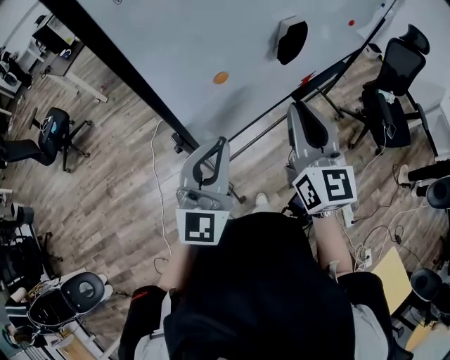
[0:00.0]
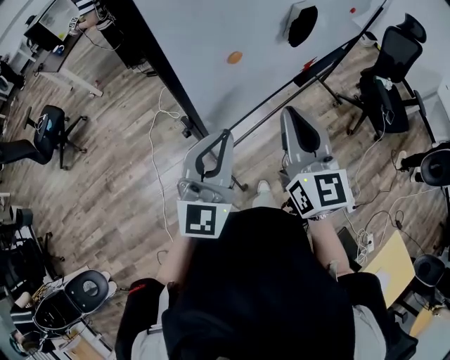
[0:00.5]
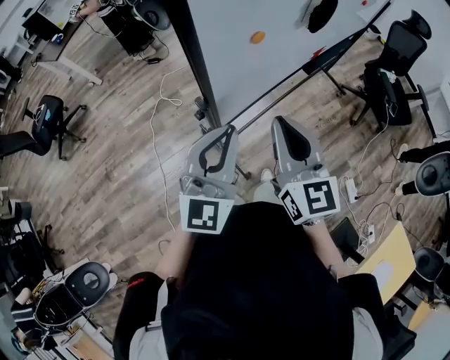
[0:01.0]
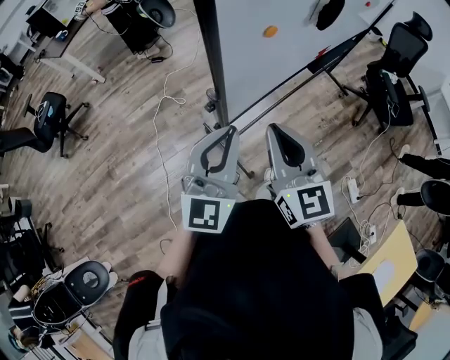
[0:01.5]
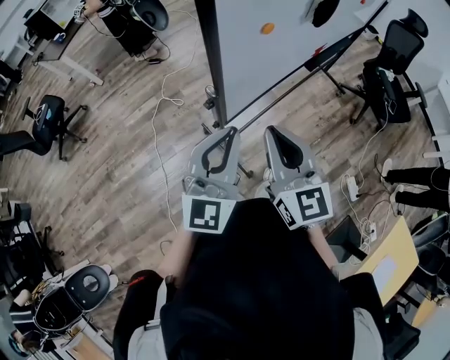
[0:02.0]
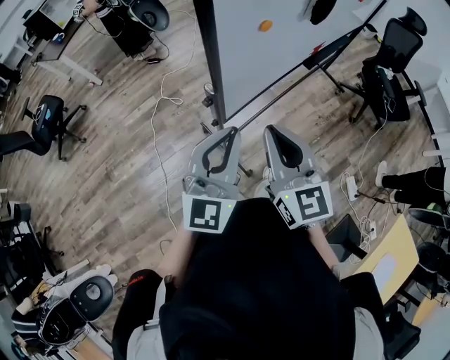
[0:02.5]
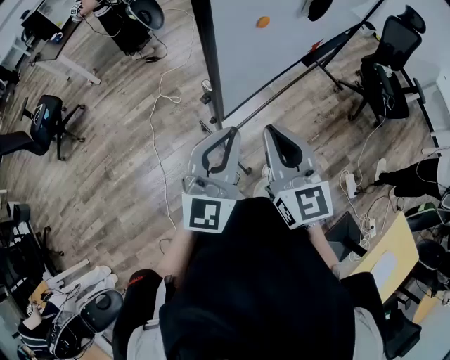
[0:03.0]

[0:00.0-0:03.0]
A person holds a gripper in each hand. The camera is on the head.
0:00.0 to 0:01.5: The left gripper moves to the left and backward, approximately 10 cm, while the right gripper goes roughly 20 cm to the left, backward and downward.
0:01.5 to 0:03.0: The grippers make only small movements.

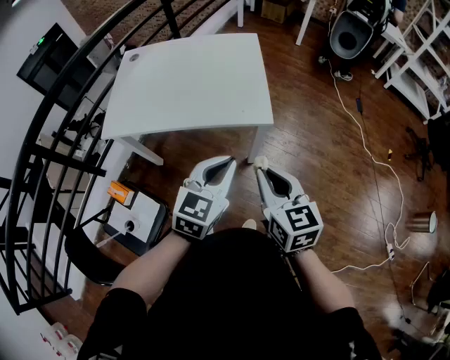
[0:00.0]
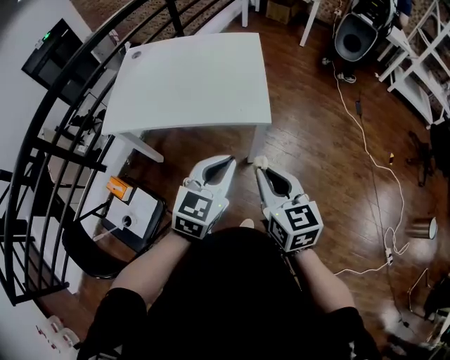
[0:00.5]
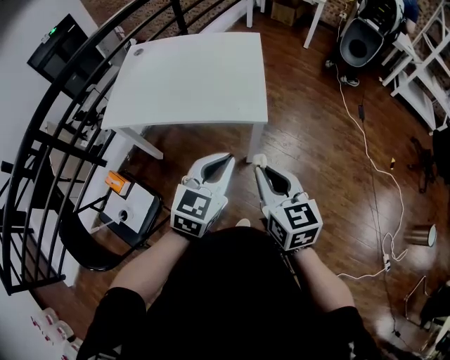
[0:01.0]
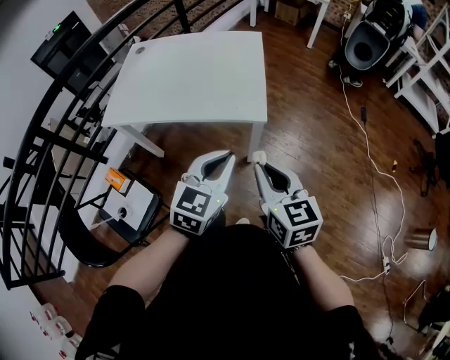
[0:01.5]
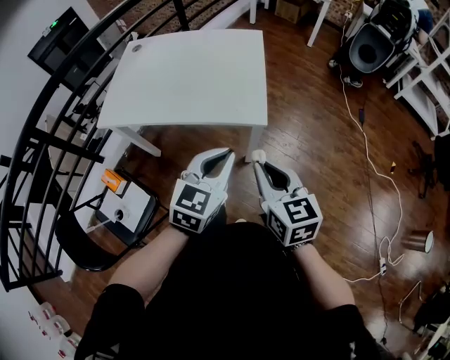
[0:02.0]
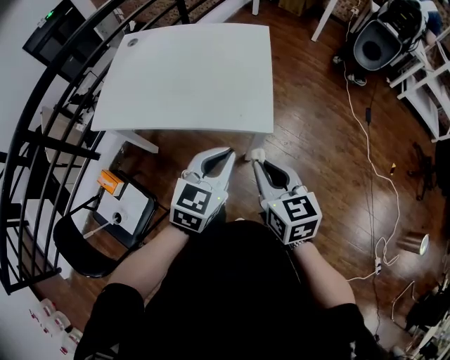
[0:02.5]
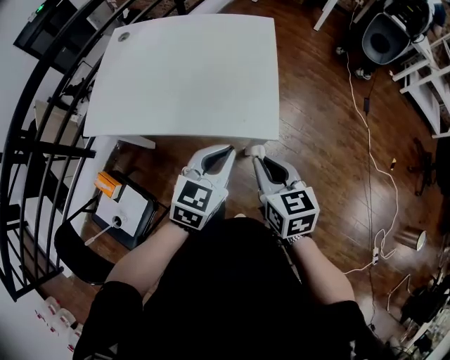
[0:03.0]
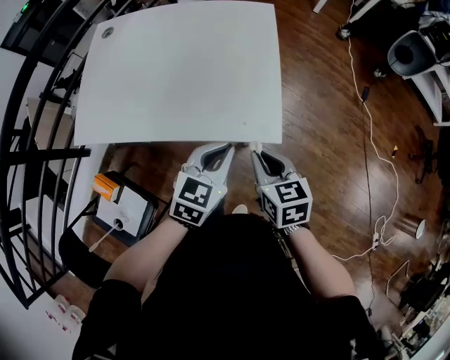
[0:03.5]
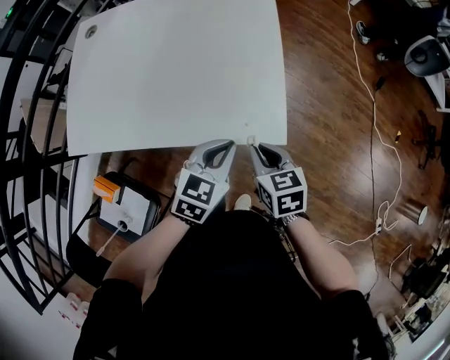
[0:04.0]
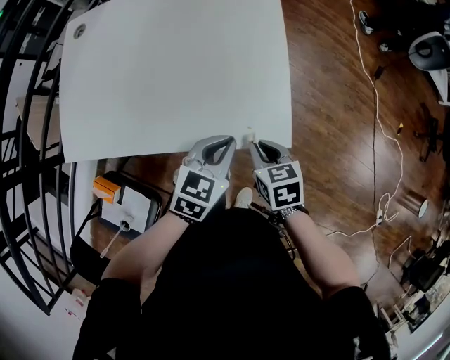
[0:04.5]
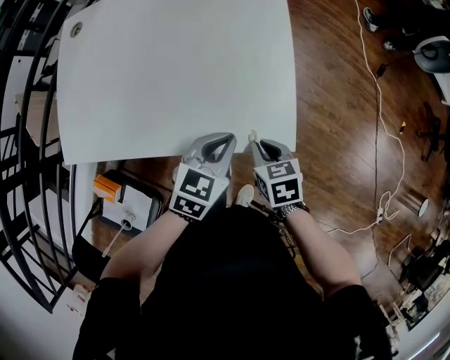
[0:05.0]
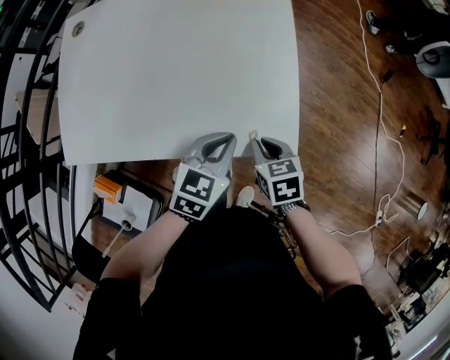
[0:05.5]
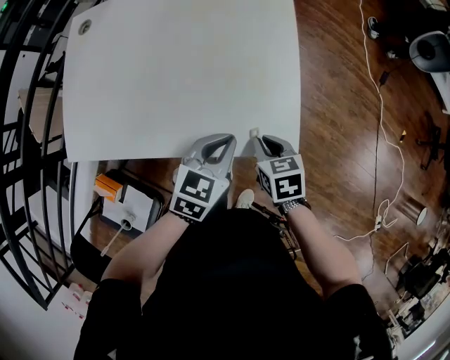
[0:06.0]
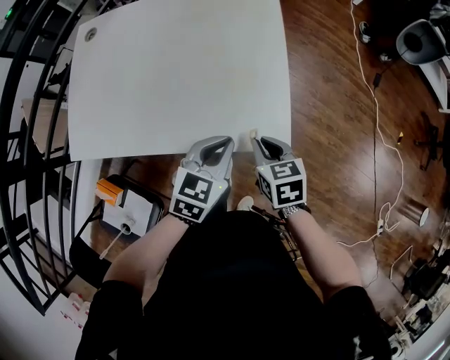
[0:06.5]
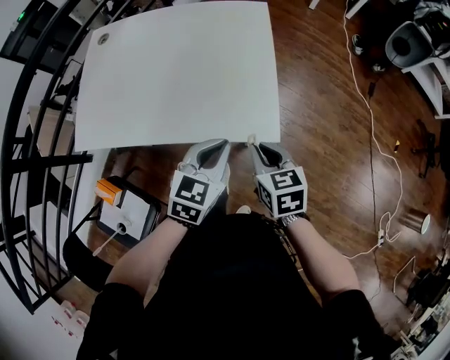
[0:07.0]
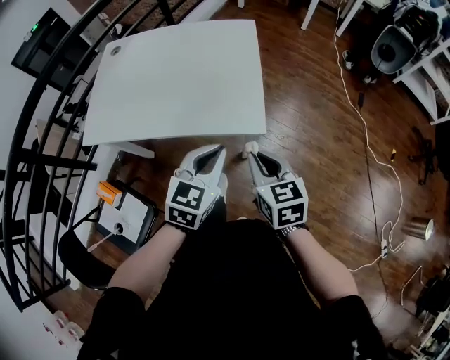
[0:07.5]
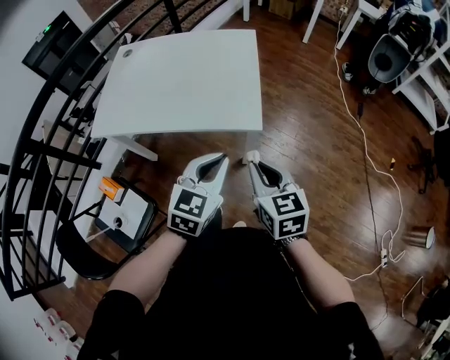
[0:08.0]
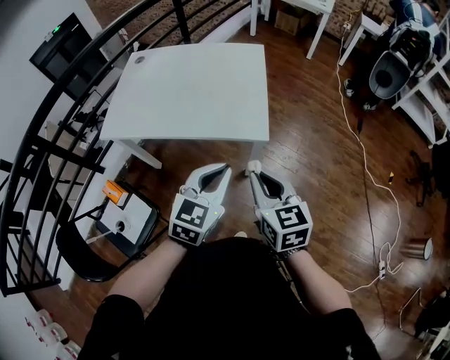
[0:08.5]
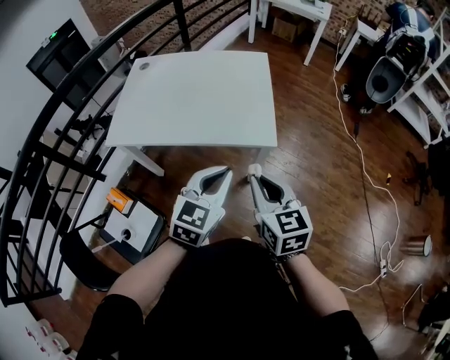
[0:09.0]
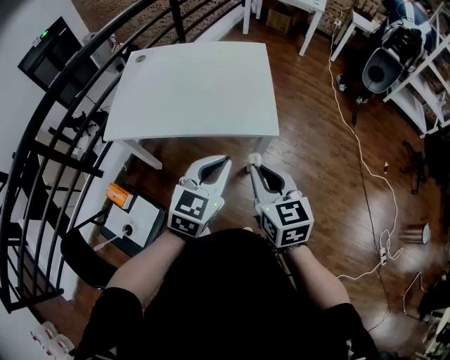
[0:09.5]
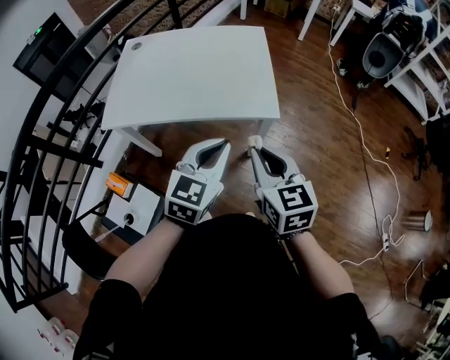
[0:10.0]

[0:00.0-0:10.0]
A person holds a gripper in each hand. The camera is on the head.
0:00.0 to 0:02.0: The left gripper moves about 5 cm. Meanwhile the right gripper shifts by some 5 cm.
0:02.0 to 0:04.0: The grippers both shift forward and downward by roughly 25 cm. The left gripper changes its angle by some 20 degrees. The right gripper swivels some 30 degrees.
0:04.0 to 0:06.0: The right gripper travels downward and forward by roughly 10 cm. The left gripper changes place by some 5 cm.
0:06.0 to 0:08.0: The two grippers go roughly 30 cm backward and upward. The right gripper rotates some 30 degrees; the left gripper swivels roughly 20 degrees.
0:08.0 to 0:10.0: The right gripper shifts about 10 cm to the left and upward, while the left gripper goes some 10 cm to the left.

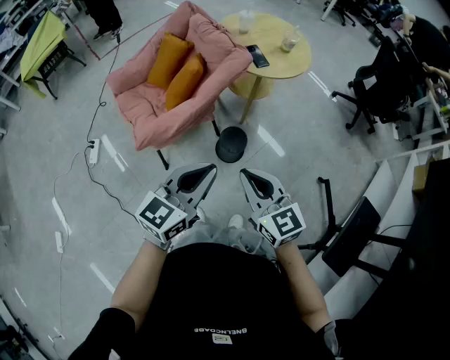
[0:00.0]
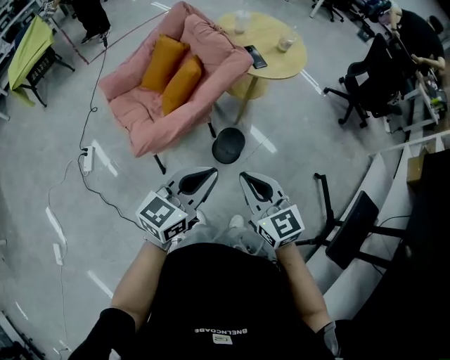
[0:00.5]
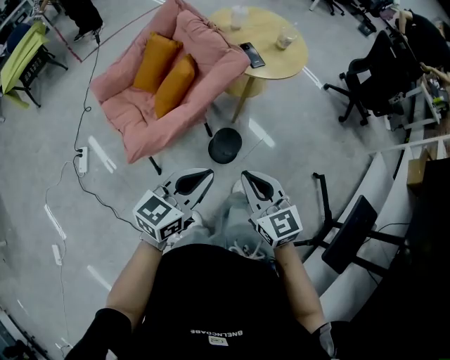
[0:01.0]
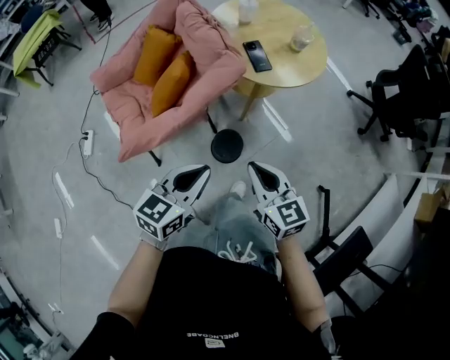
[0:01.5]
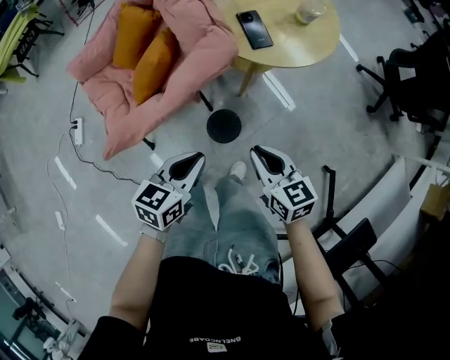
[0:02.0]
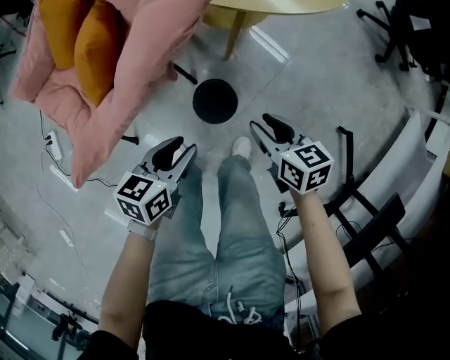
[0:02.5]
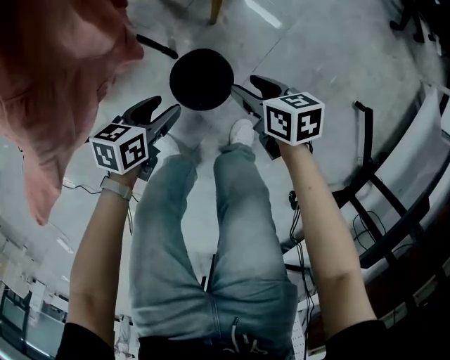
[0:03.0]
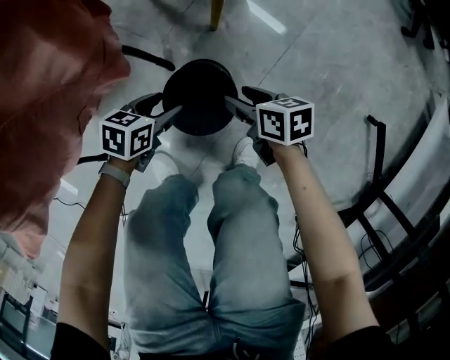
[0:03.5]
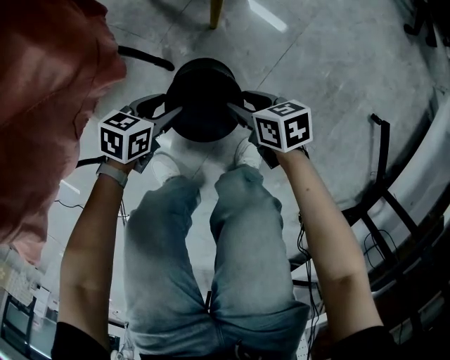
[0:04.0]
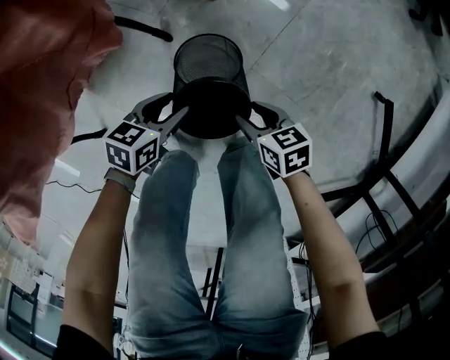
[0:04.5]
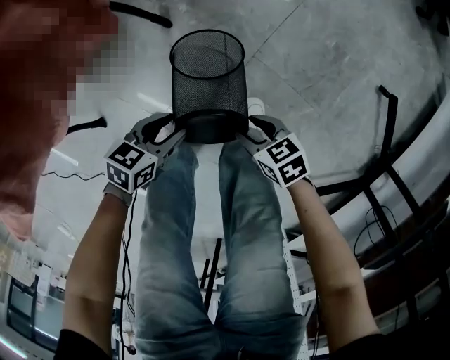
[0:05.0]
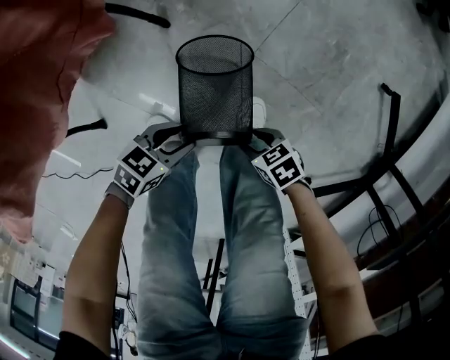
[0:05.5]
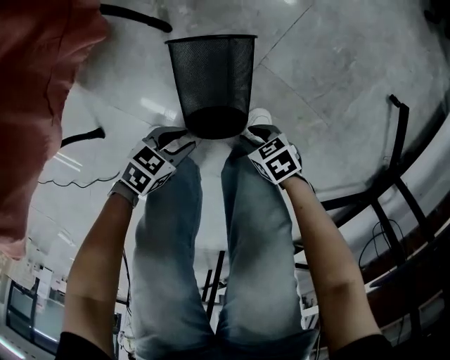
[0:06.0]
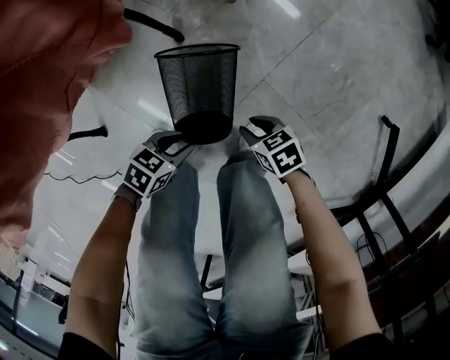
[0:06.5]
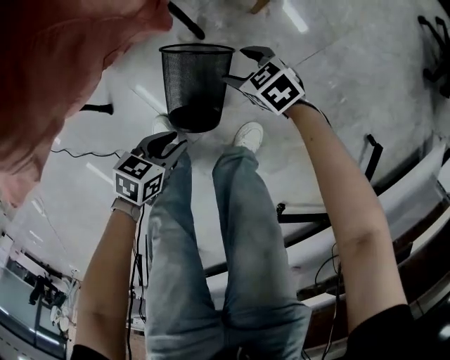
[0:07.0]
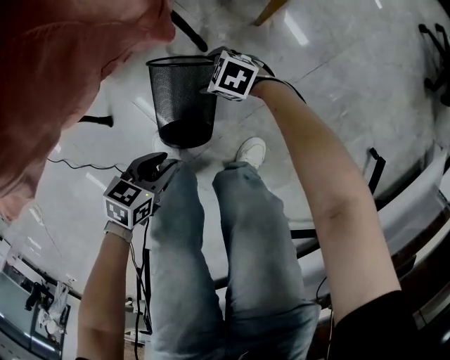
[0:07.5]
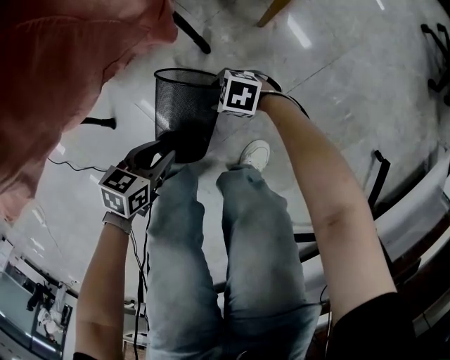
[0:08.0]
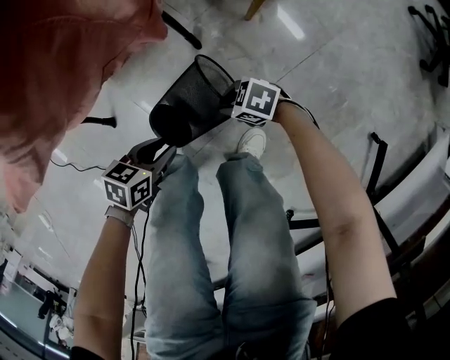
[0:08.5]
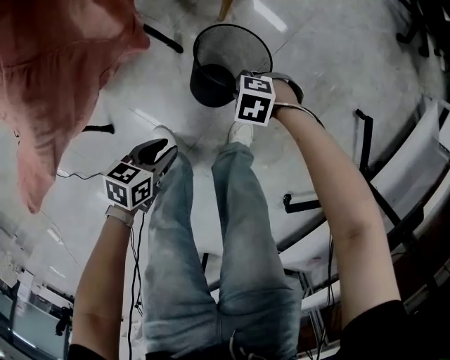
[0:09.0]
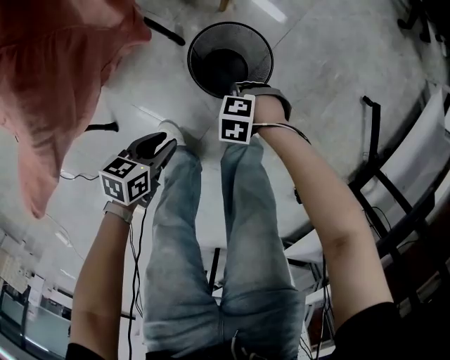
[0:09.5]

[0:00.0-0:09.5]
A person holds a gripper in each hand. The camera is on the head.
0:00.0 to 0:02.0: The two grippers go about 30 cm forward and downward. The left gripper changes its angle by approximately 30 degrees, while the right gripper changes its angle by roughly 20 degrees.
0:02.0 to 0:04.0: Both grippers travel together downward, approximately 50 cm. The left gripper swivels about 30 degrees, and opens up, while the right gripper turns by approximately 30 degrees, and opens its fingers.
0:04.0 to 0:05.5: The right gripper shifts by about 25 cm, and changes its angle by roughly 20 degrees; the left gripper changes place by approximately 20 cm.
0:05.5 to 0:07.5: The right gripper moves up and down over roughly 10 cm, changing direction 2 times, rolls counterclockwise, seen from behind, by about 50 degrees, and opens its fingers, while the left gripper goes downward and returns, approximately 5 cm each way, and rotates some 30 degrees.
0:07.5 to 0:09.5: The right gripper shifts by about 20 cm, swivels some 30 degrees, and closes; the left gripper is displaced upward by approximately 5 cm.

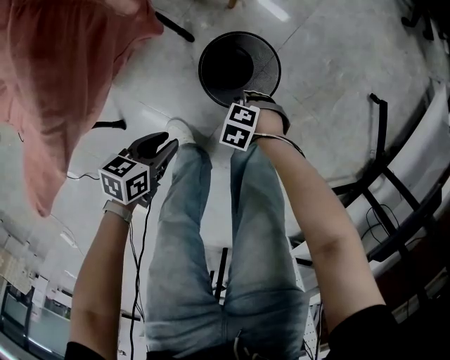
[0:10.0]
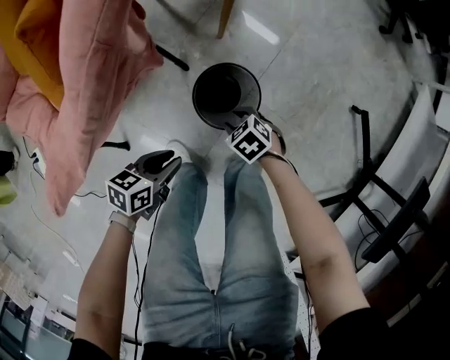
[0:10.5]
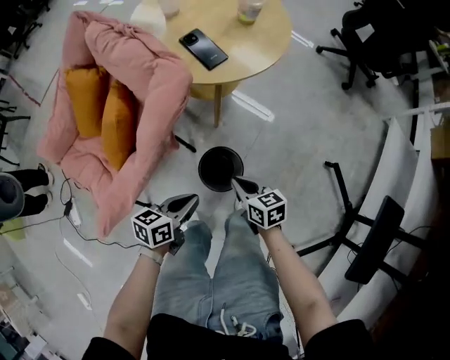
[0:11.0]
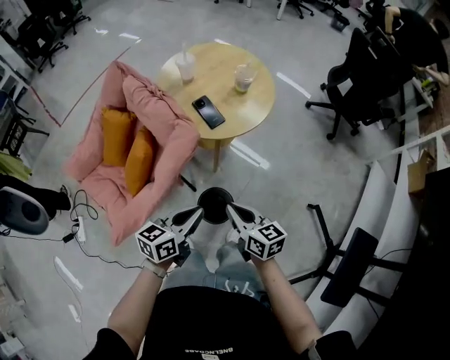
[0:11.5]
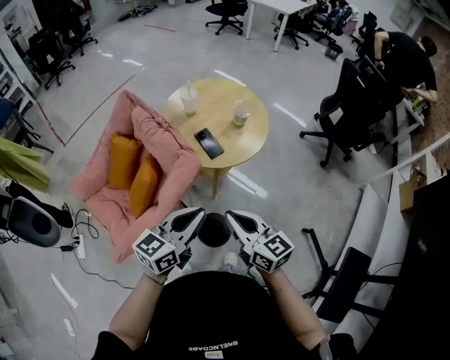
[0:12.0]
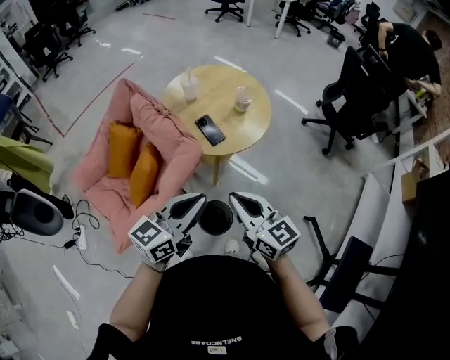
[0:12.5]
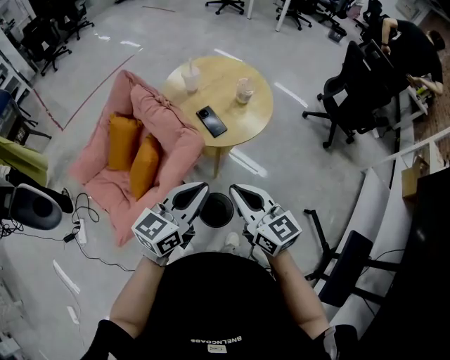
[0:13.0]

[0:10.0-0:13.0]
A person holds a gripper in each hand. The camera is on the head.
0:10.0 to 0:11.5: Both grippers travel together upward, some 60 cm. The left gripper turns by approximately 40 degrees, and closes. Meanwhile the right gripper points its fingers about 60 degrees further upward.
0:11.5 to 0:13.0: Both grippers move upward, some 15 cm. The right gripper turns by some 20 degrees. Meanwhile the left gripper changes its angle by approximately 20 degrees.
